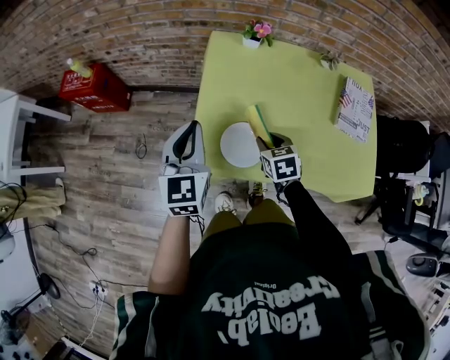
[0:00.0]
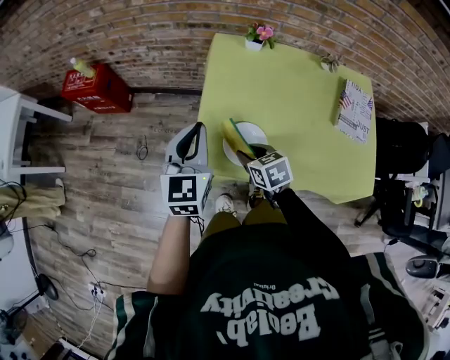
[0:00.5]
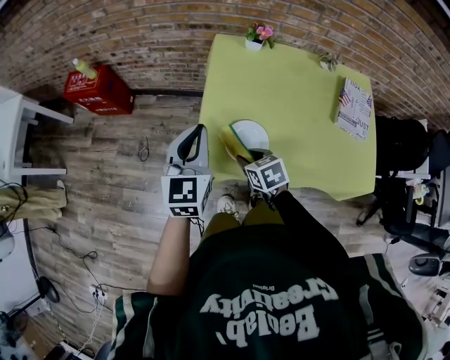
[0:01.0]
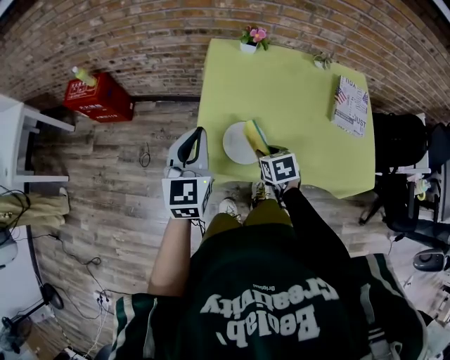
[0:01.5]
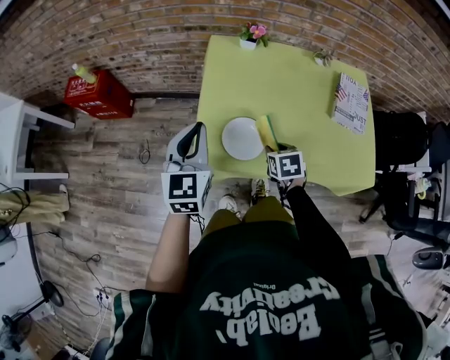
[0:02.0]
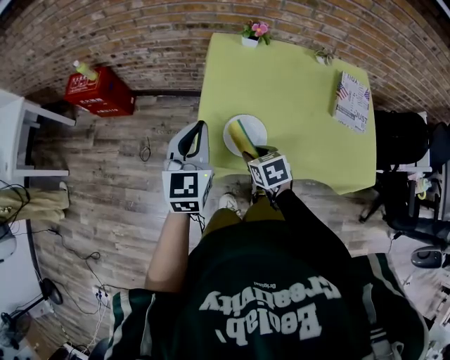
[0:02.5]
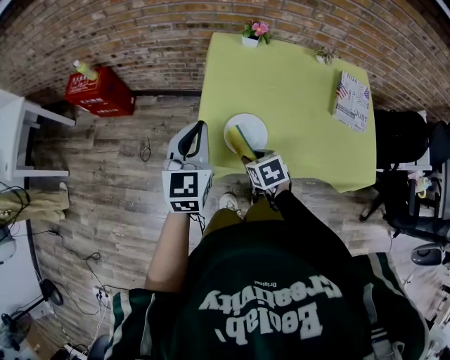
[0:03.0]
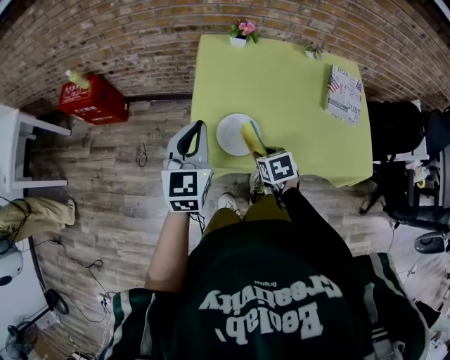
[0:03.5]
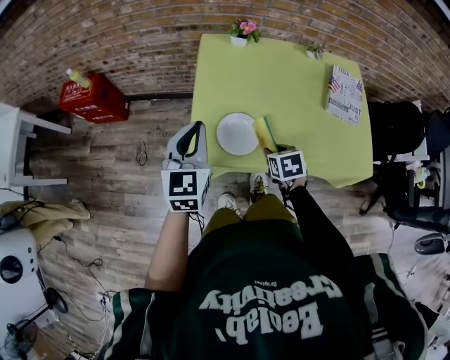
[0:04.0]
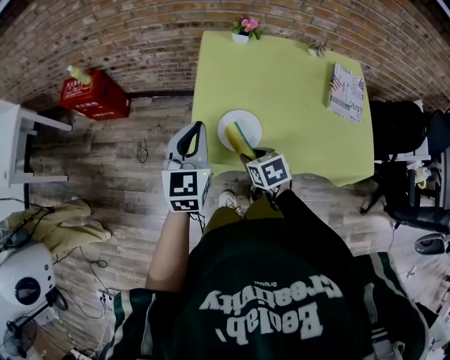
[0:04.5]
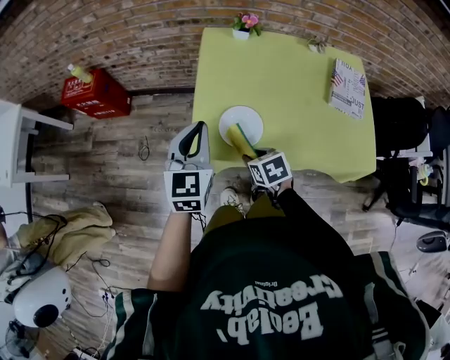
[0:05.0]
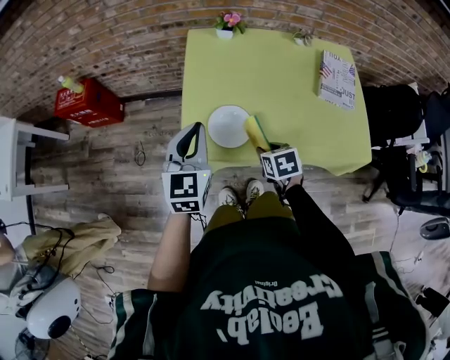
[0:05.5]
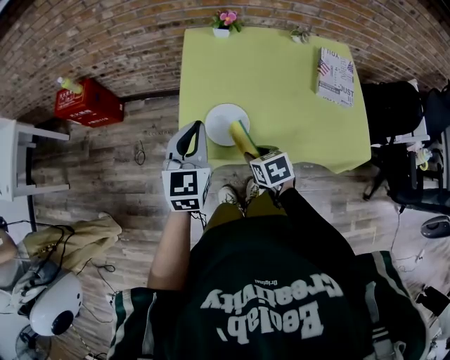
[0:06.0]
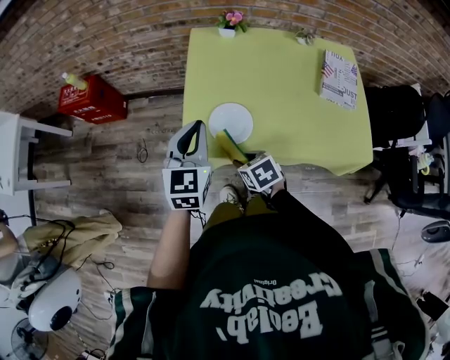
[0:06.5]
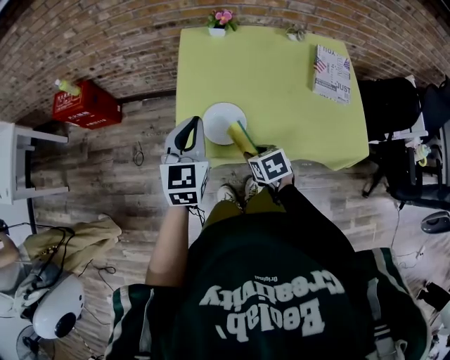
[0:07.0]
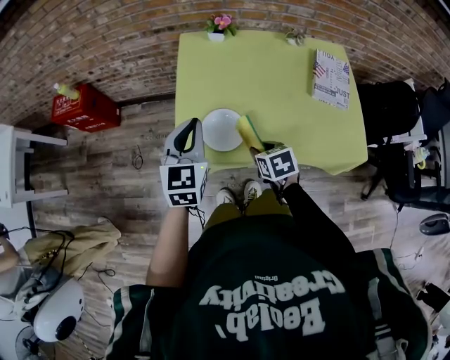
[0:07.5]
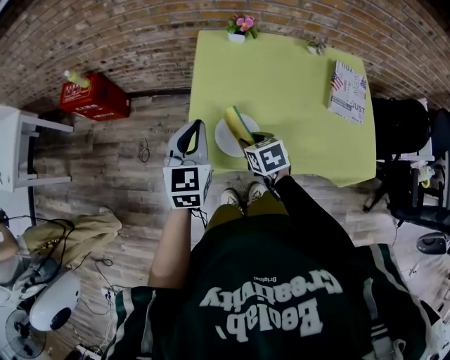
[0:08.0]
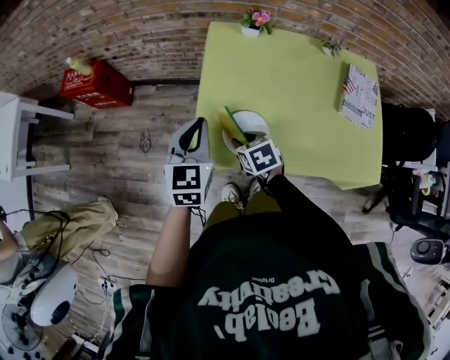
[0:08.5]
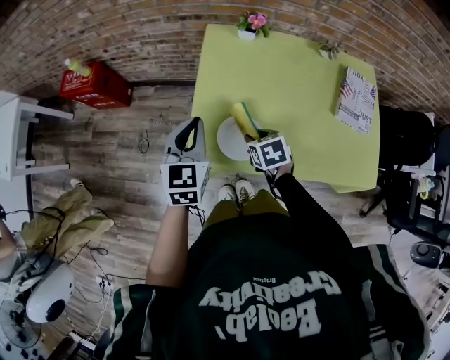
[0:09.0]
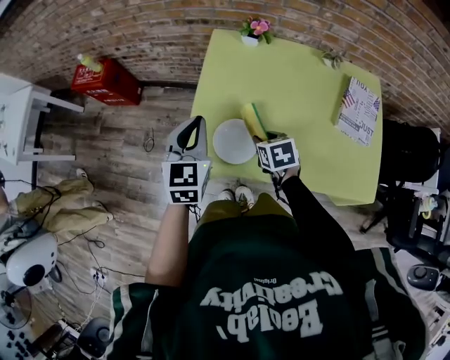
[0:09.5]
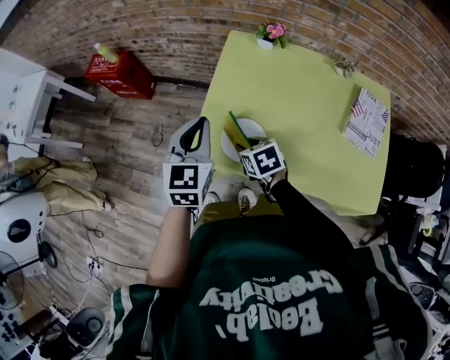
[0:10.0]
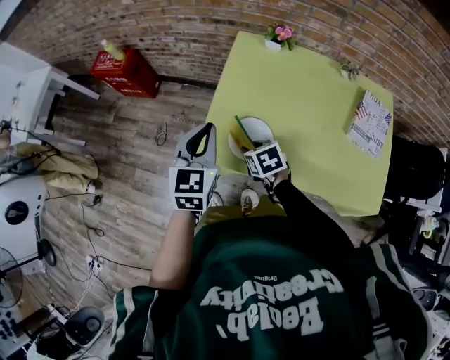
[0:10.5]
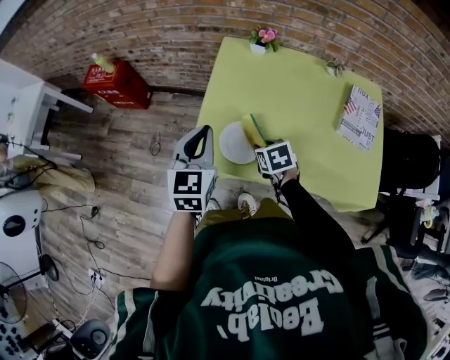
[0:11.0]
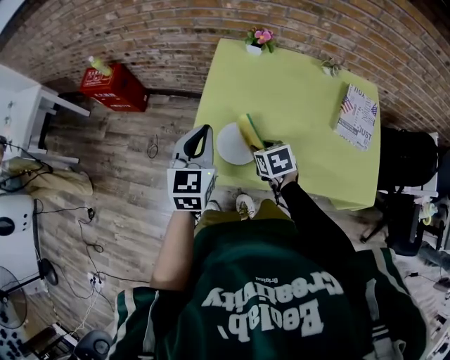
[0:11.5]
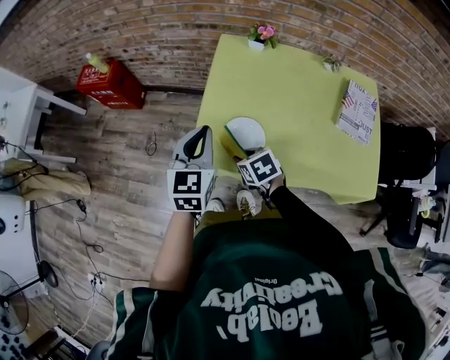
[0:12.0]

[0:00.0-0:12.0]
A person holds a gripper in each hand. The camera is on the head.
0:00.0 to 0:02.0: The right gripper travels backward by about 5 cm, and reaches roughly 10 cm to the left, then returns.
0:02.0 to 0:04.0: The right gripper moves roughly 10 cm to the left and comes back.
0:06.0 to 0:08.0: The right gripper is displaced forward by approximately 10 cm, while the left gripper goes approximately 5 cm forward.
0:08.0 to 0:10.0: The right gripper goes left and right, roughly 10 cm each way, reversing 2 times.
0:10.0 to 0:12.0: The right gripper travels to the right and back again, approximately 5 cm each way.

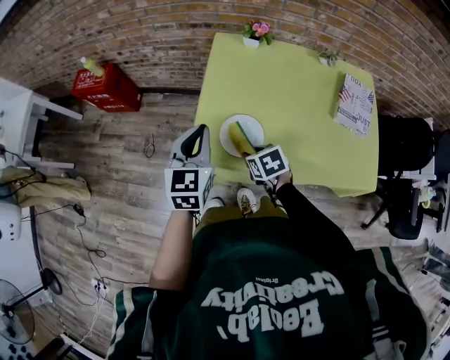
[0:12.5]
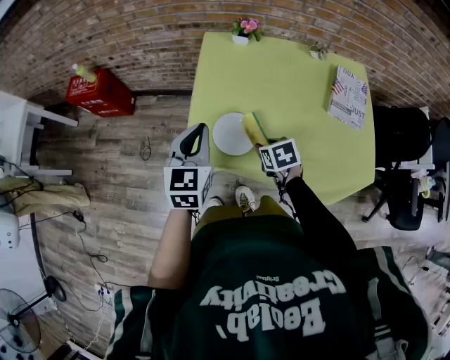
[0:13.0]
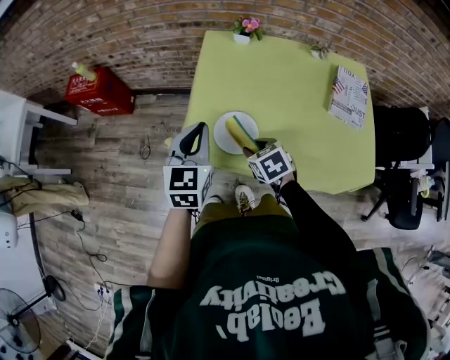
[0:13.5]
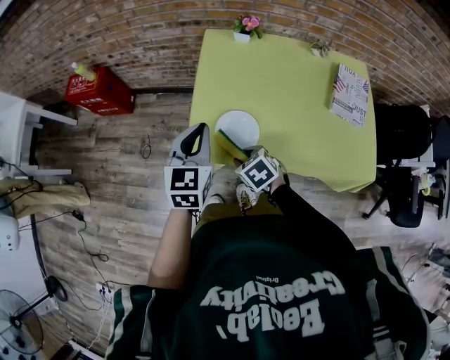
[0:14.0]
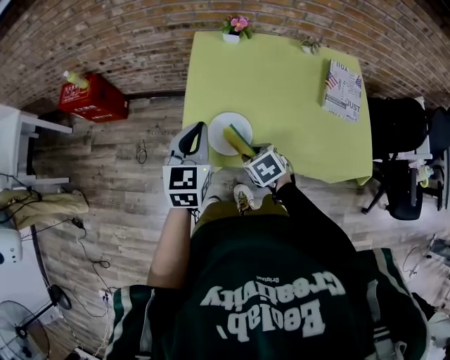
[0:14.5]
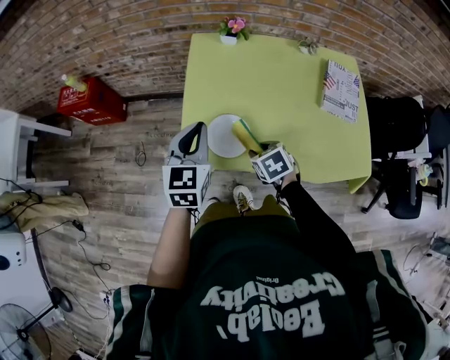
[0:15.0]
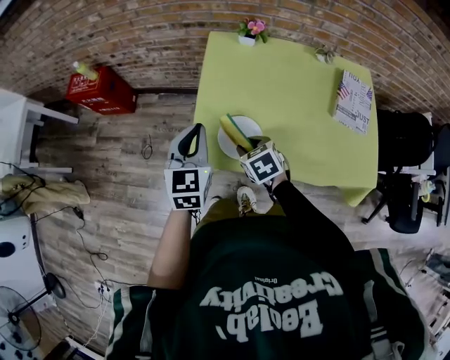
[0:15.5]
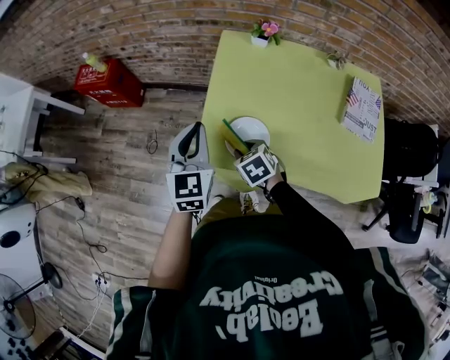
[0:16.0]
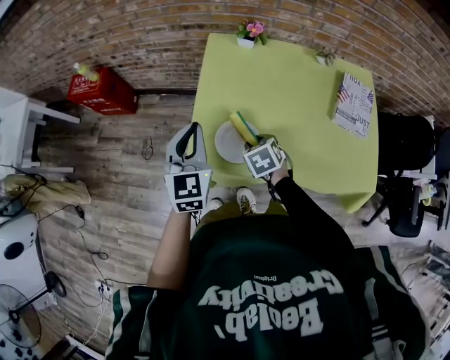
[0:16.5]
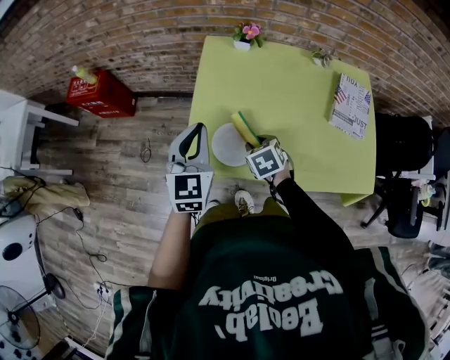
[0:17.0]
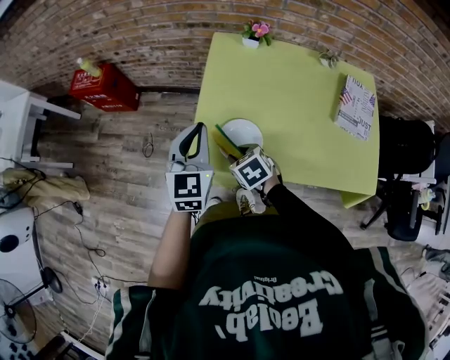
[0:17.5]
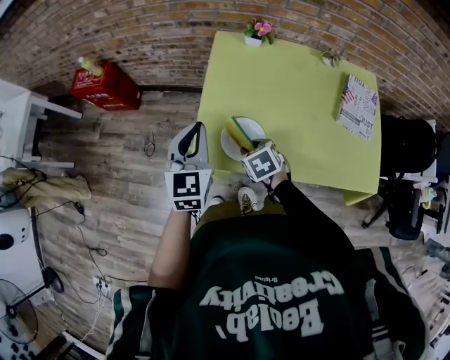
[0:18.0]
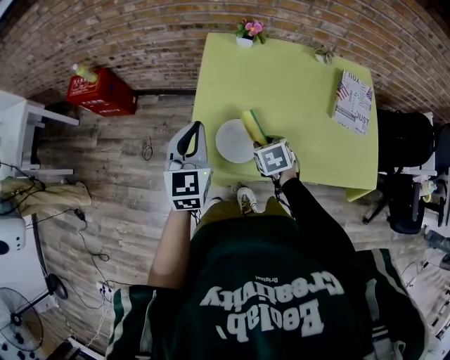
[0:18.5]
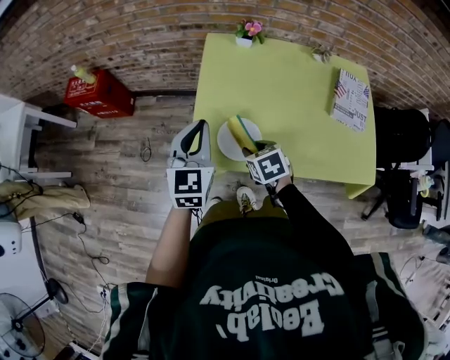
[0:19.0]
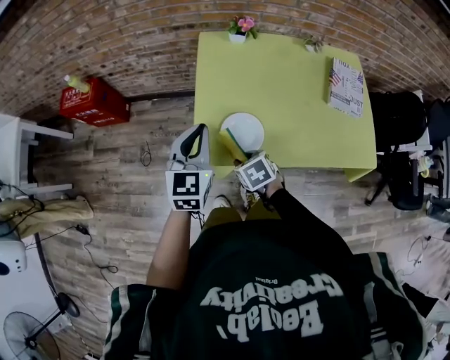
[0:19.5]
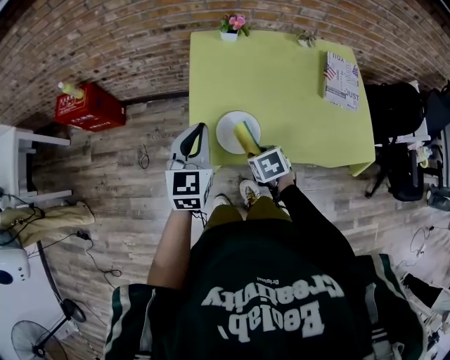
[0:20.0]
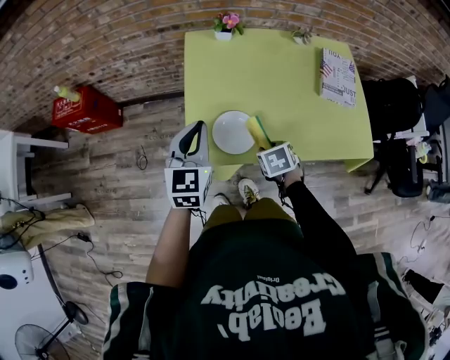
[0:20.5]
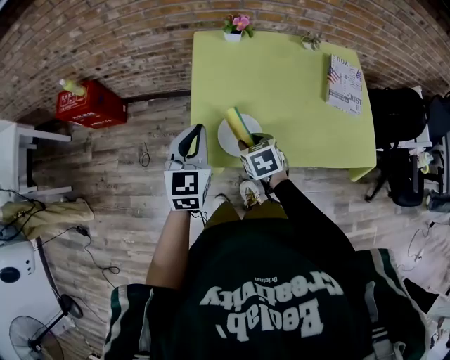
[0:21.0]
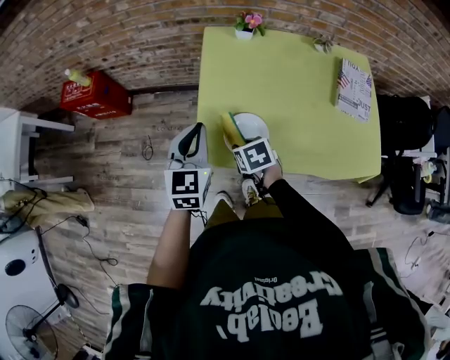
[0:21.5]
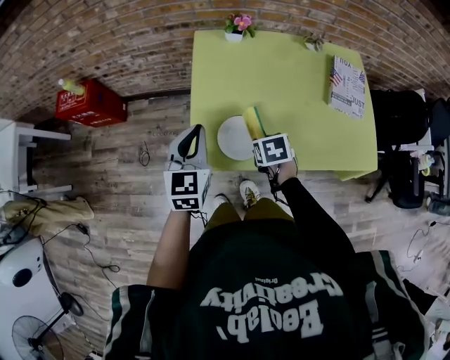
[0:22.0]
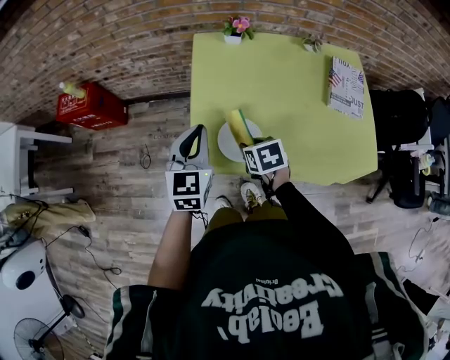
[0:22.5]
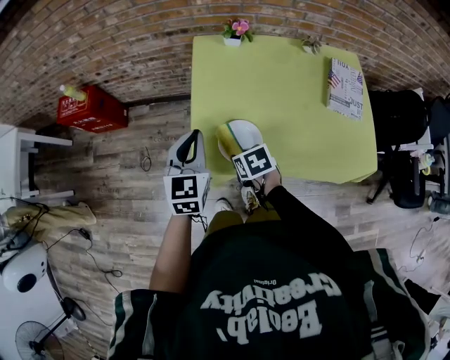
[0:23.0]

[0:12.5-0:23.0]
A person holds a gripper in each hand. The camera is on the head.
0:12.5 to 0:14.5: The right gripper goes left and right, some 10 cm each way, reversing 2 times.
0:14.5 to 0:16.5: The right gripper moves forward, approximately 5 cm, and goes to the left and returns, approximately 5 cm each way.
0:16.5 to 0:19.0: The right gripper swings left and right, roughly 10 cm each way, with 2 reversals.
0:19.0 to 0:21.0: The right gripper moves left and right over some 10 cm, changing direction 2 times.
0:21.0 to 0:23.0: The right gripper goes left and right, roughly 10 cm each way, reversing 2 times.

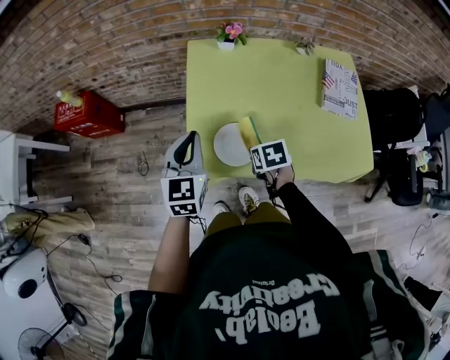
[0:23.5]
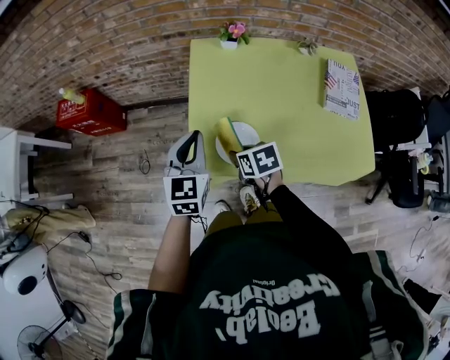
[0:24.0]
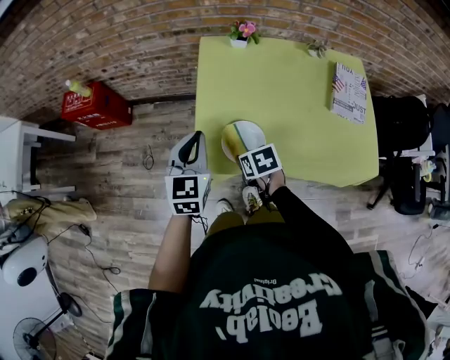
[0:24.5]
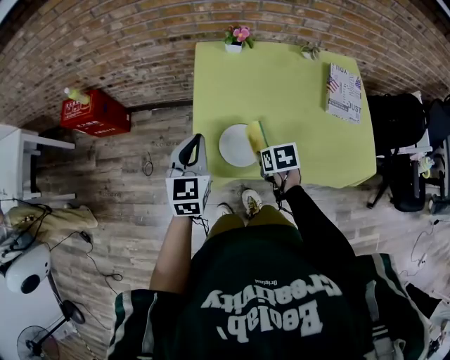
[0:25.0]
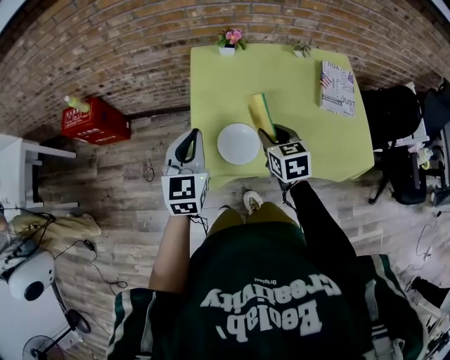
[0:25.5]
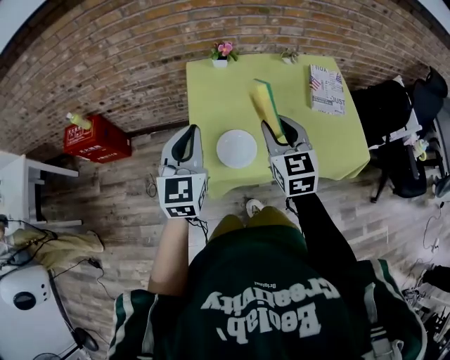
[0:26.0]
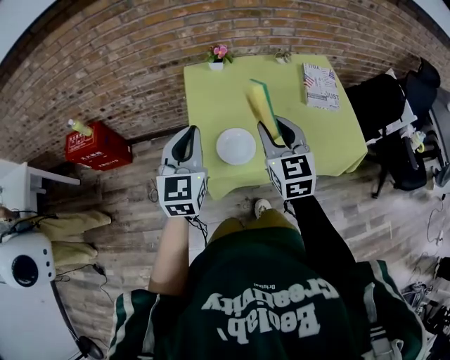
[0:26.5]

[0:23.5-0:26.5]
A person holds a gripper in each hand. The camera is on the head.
0:23.5 to 0:25.0: The right gripper goes to the left and returns, about 10 cm each way.
0:25.0 to 0:26.5: The left gripper travels upward by roughly 10 cm. The right gripper shifts some 25 cm upward, and angles its fingers upward, by roughly 50 degrees.

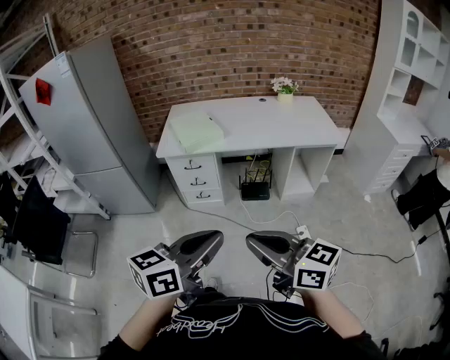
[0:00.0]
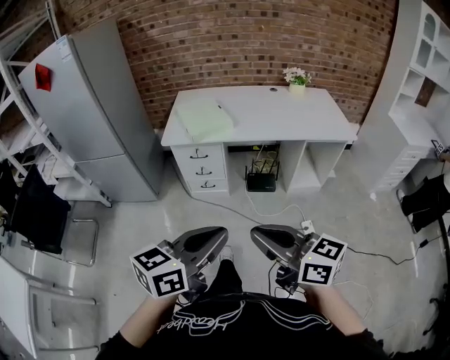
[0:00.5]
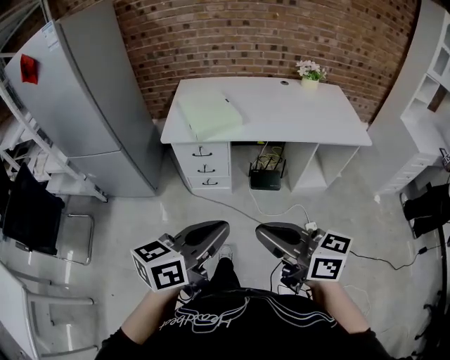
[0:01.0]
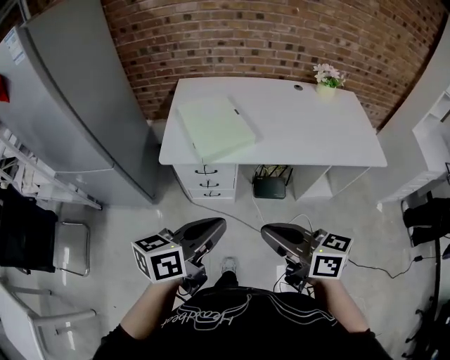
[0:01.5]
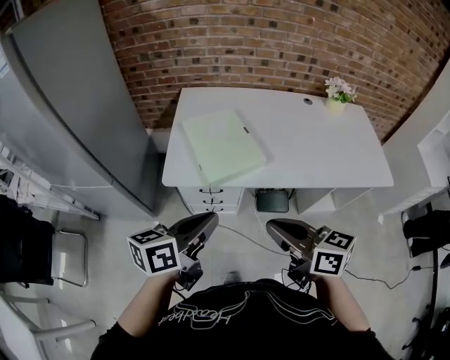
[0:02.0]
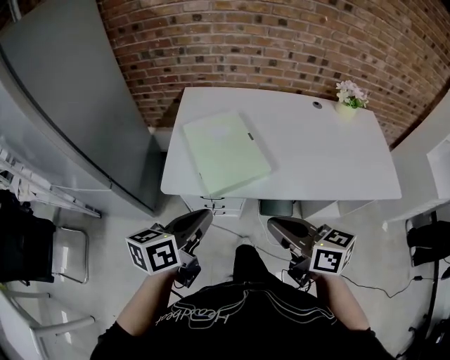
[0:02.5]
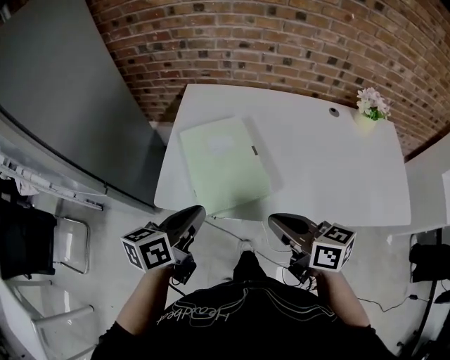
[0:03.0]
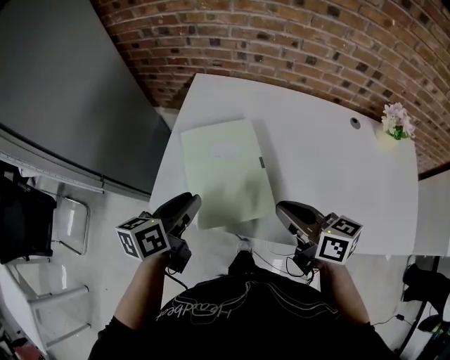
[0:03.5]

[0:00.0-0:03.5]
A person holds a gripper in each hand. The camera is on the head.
0:00.0 to 0:02.0: The pair of grippers is taken forward, roughly 50 cm.
0:02.0 to 0:03.5: Both grippers travel together forward, about 25 cm. The left gripper swivels roughly 30 degrees.
